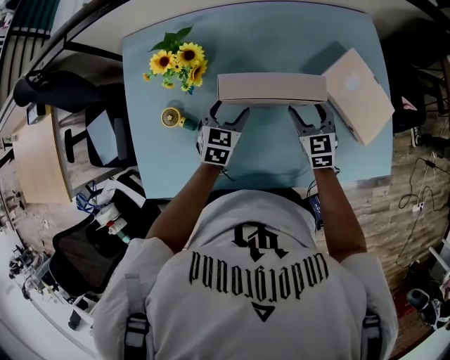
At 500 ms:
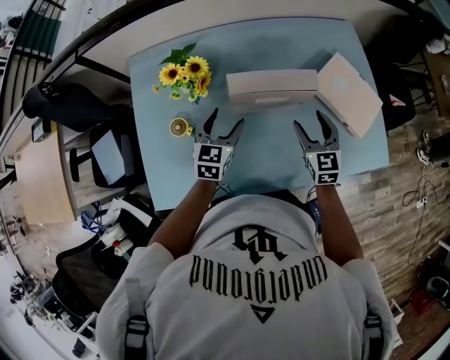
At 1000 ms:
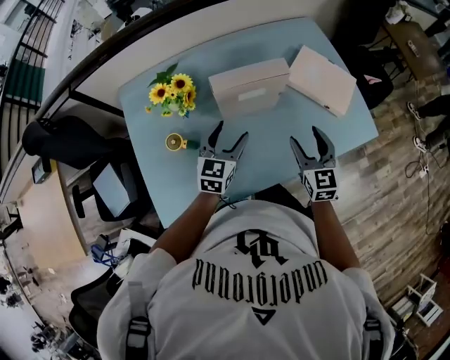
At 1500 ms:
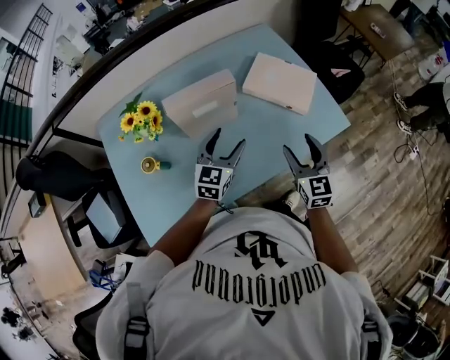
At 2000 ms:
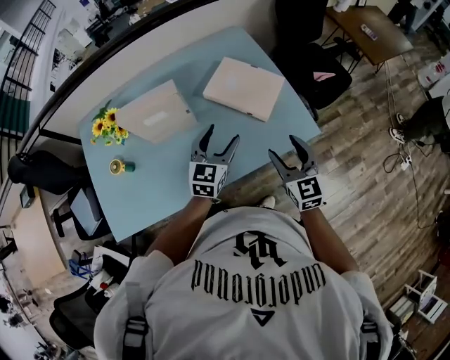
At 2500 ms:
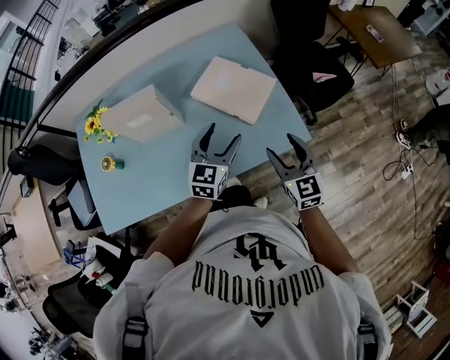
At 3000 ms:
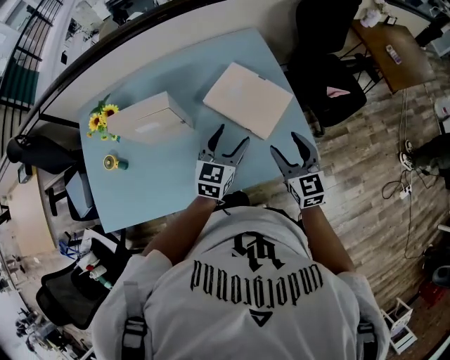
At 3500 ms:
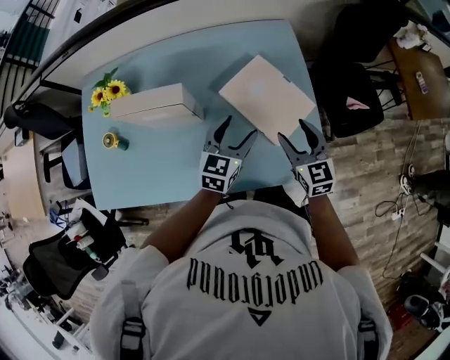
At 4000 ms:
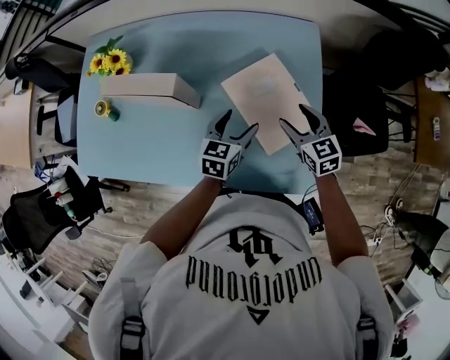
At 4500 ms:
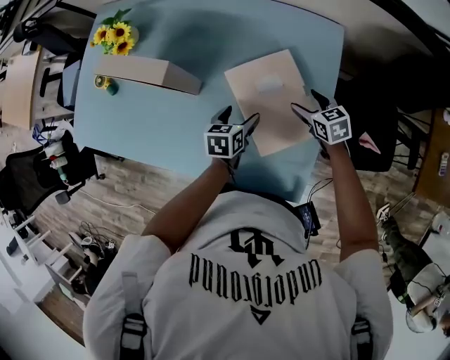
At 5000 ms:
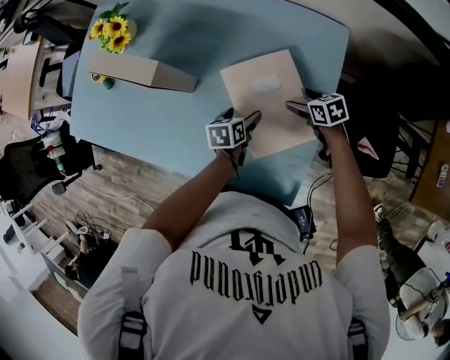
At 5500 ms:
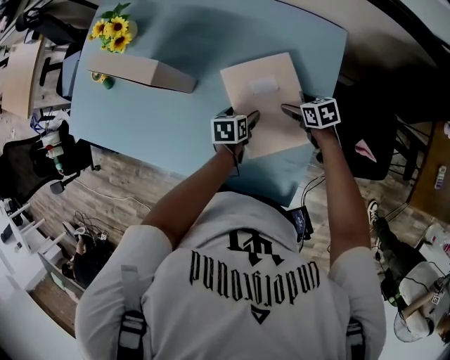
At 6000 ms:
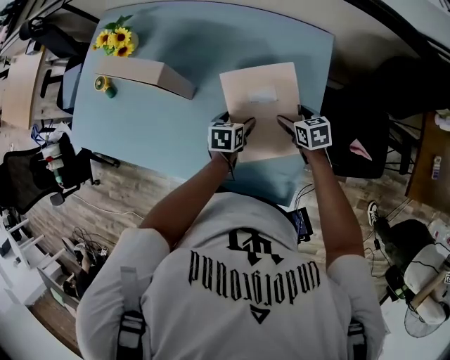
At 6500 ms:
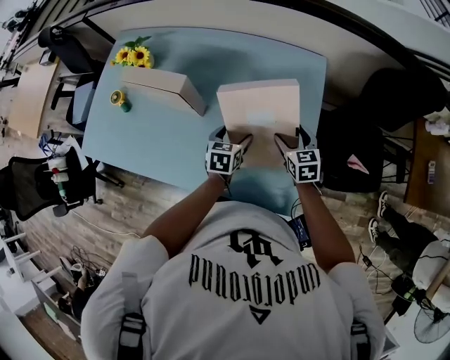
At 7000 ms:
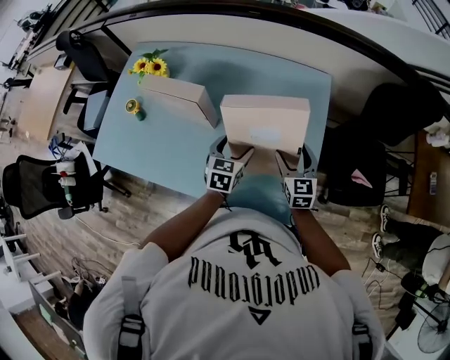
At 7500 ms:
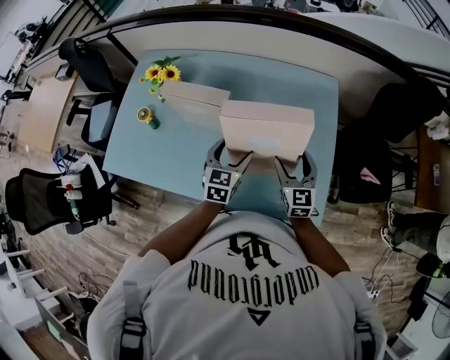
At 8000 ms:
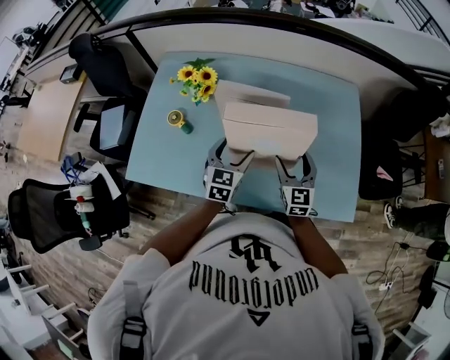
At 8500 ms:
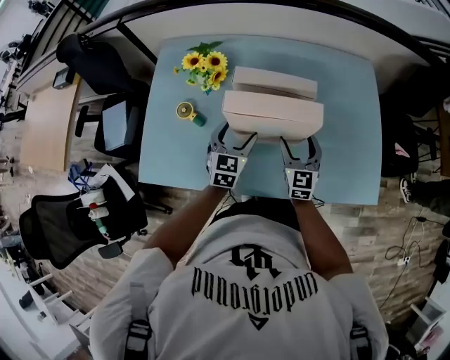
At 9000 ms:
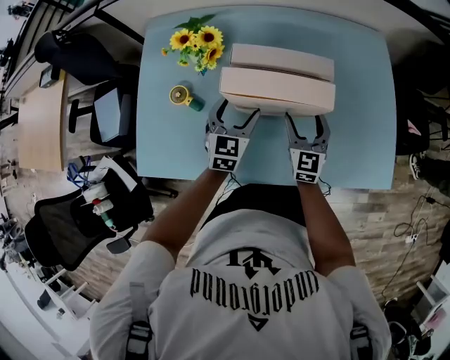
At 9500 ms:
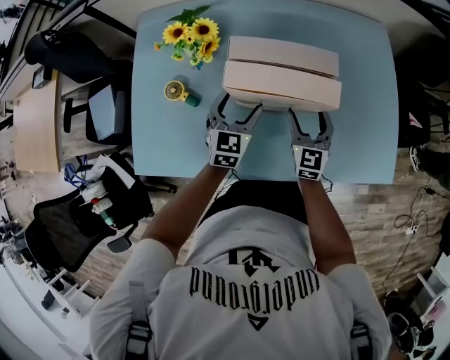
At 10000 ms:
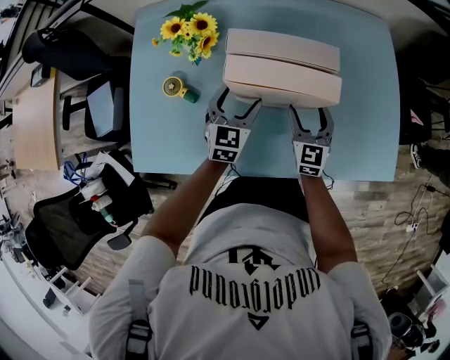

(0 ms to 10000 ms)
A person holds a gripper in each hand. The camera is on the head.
0 ms - 2000 ms: The right gripper is displaced to the right, backward and upward by about 40 cm, and swivels about 20 degrees; the left gripper is displaced to the right and upward by about 40 cm, and changes its angle by some 30 degrees.
2000 ms - 4000 ms: The left gripper shifts by about 20 cm, and turns by about 40 degrees. The right gripper moves about 35 cm, and swivels roughly 40 degrees.
4000 ms - 6000 ms: The right gripper heads downward and to the right, covering approximately 15 cm, and changes its angle by some 20 degrees, while the left gripper is displaced downward by roughly 10 cm, and swivels about 30 degrees.
6000 ms - 8000 ms: Both grippers move to the left and upward, approximately 40 cm. The left gripper turns by roughly 40 degrees. Meanwhile the right gripper angles its fingers upward, by some 40 degrees.
8000 ms - 10000 ms: Both grippers move downward, to the left and forward, some 15 cm.

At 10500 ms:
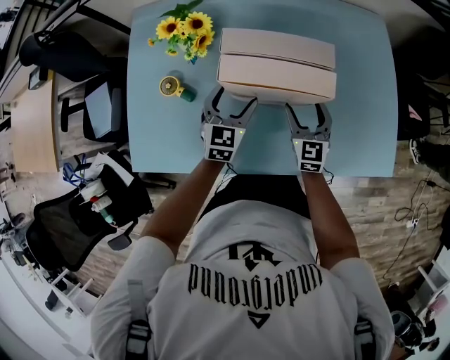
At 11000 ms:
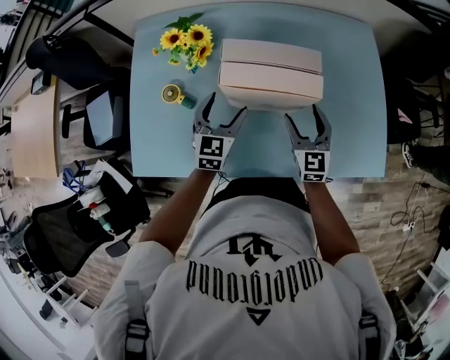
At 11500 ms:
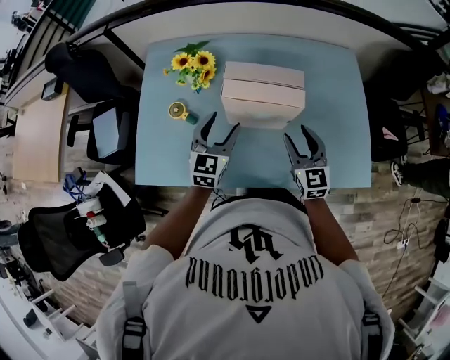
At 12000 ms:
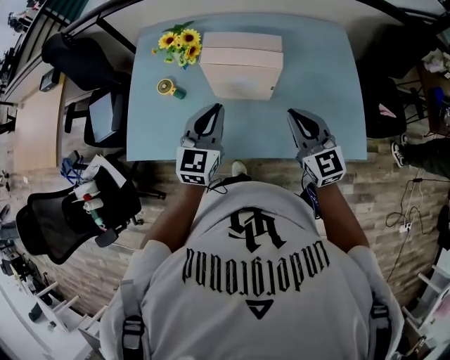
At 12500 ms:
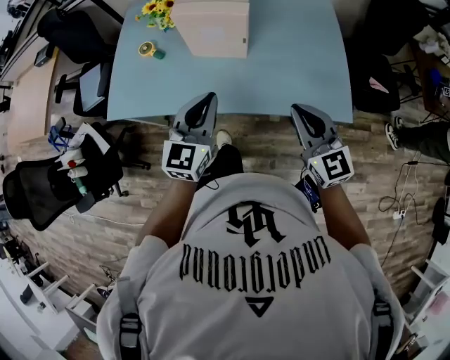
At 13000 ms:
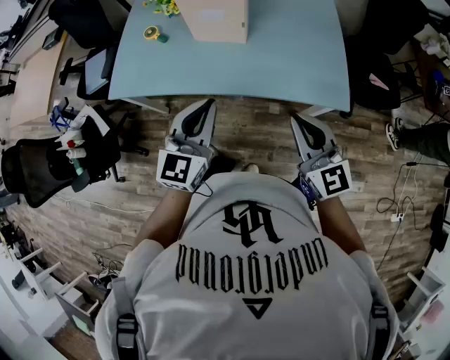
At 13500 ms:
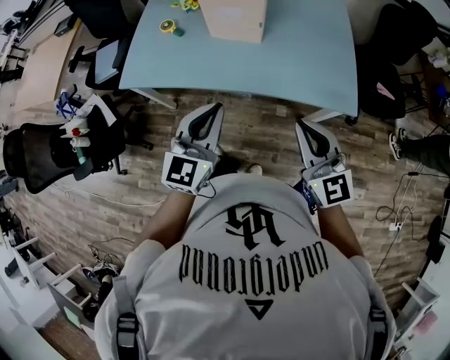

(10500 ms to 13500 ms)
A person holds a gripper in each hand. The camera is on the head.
10500 ms - 12000 ms: Both grippers move upward and backward, some 25 cm. The left gripper closes its fingers, while the right gripper turns by some 20 degrees, and closes its fingers.
12000 ms - 13500 ms: Both grippers move backward, some 30 cm.

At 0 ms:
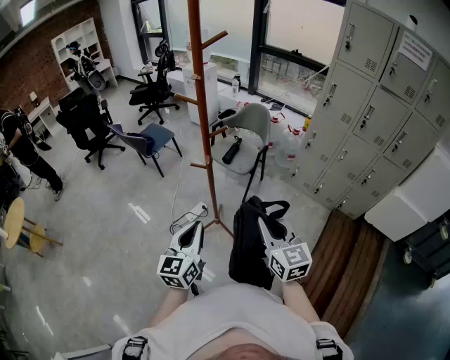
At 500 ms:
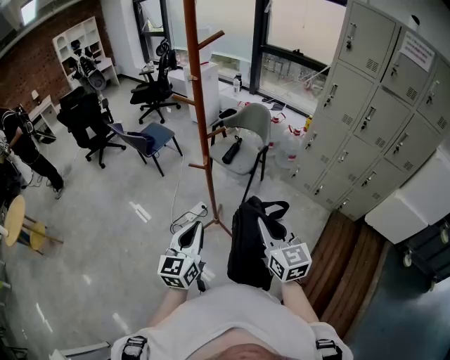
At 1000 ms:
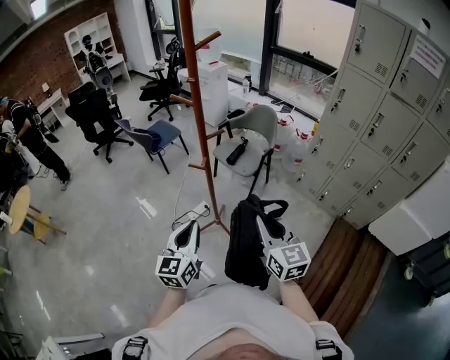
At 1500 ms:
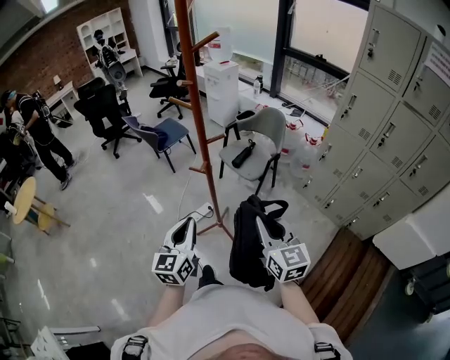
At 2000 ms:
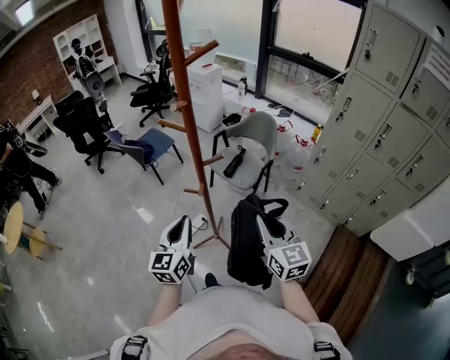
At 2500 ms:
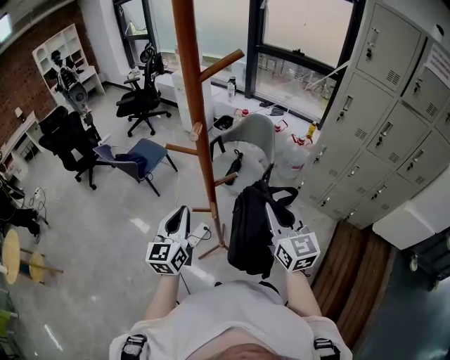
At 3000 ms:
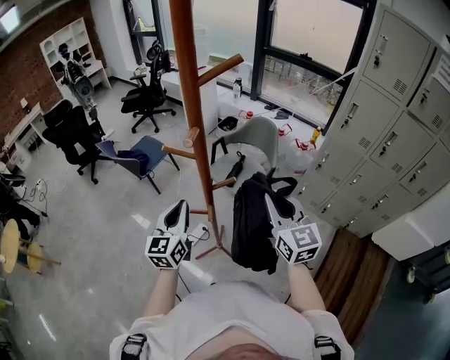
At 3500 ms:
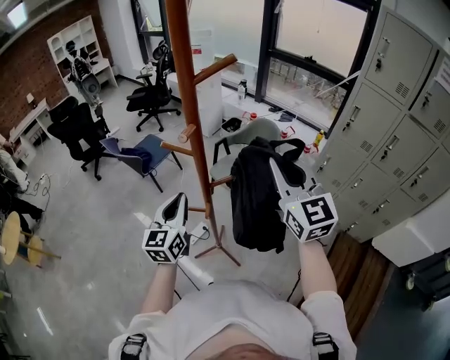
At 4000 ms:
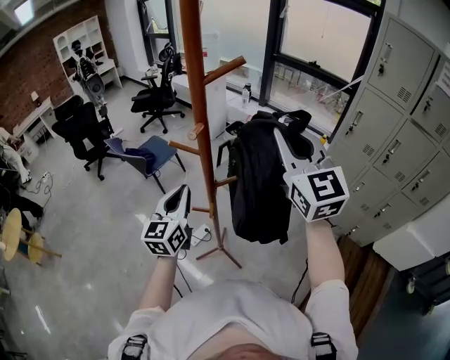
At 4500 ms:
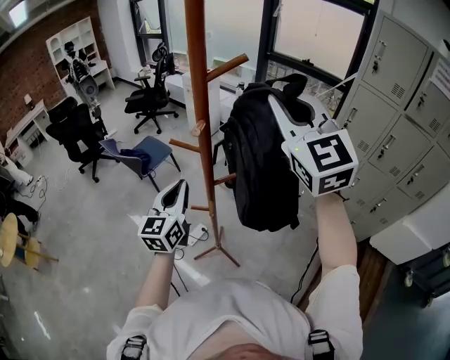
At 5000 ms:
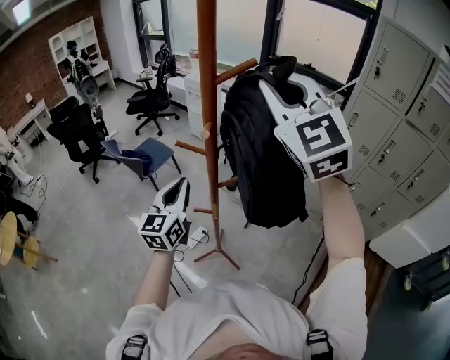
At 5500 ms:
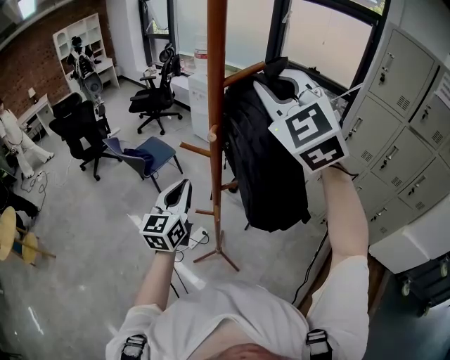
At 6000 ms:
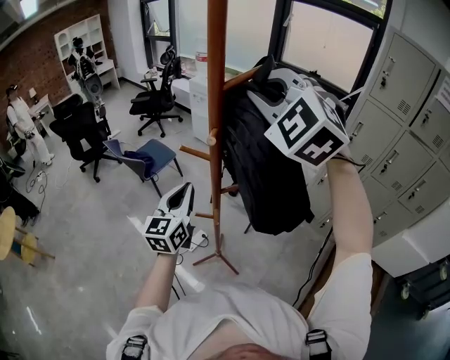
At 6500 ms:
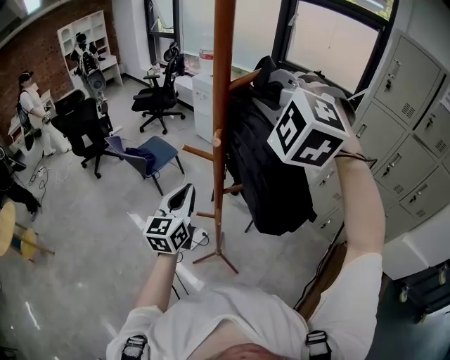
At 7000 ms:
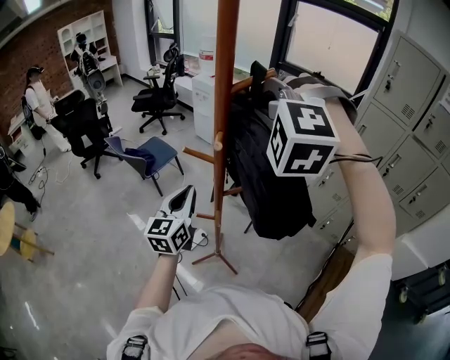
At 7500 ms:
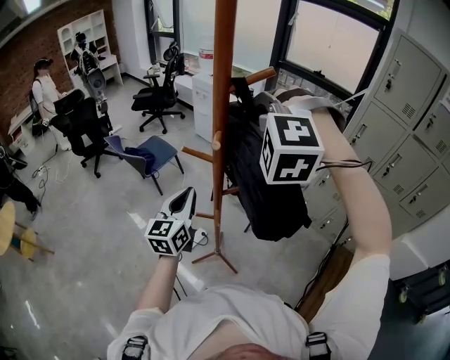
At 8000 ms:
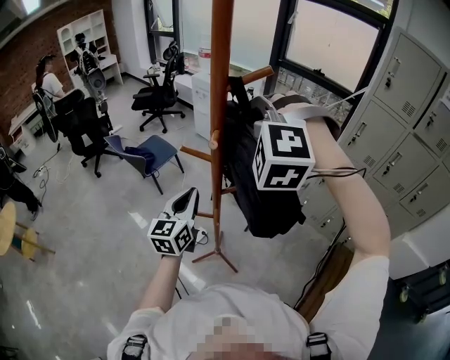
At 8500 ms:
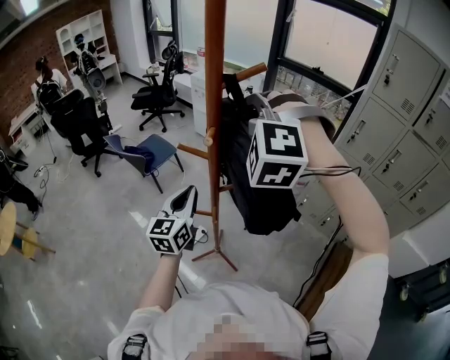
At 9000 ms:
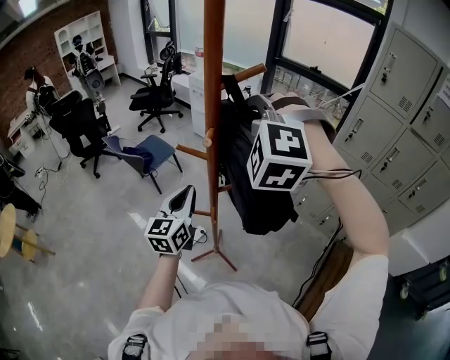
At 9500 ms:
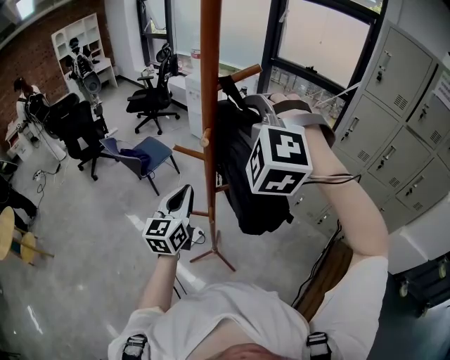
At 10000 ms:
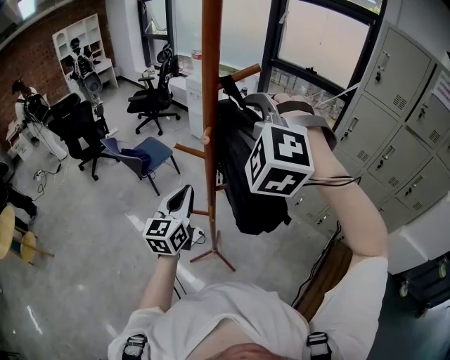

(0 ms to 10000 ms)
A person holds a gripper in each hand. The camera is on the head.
0 ms - 2000 ms: The two grippers go approximately 15 cm forward.
2000 ms - 4000 ms: The left gripper shifts about 15 cm forward and upward; the right gripper goes about 30 cm upward and forward, and turns by about 30 degrees.
4000 ms - 6000 ms: The right gripper travels to the left and upward by roughly 15 cm, and twists roughly 40 degrees counterclockwise, seen from behind.
6000 ms - 8000 ms: The right gripper moves downward, roughly 10 cm, and swivels about 30 degrees.
8000 ms - 10000 ms: The right gripper opens its fingers.

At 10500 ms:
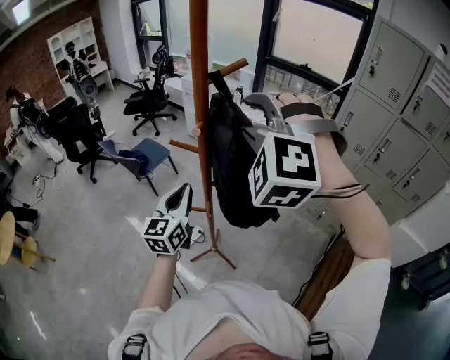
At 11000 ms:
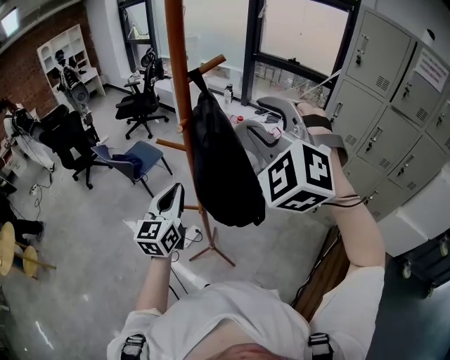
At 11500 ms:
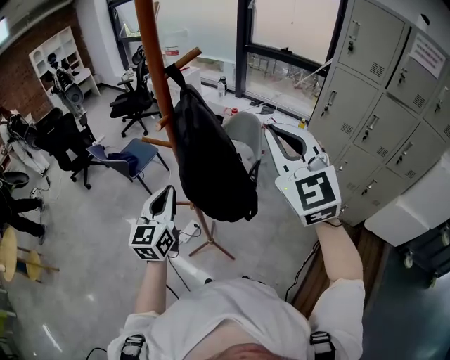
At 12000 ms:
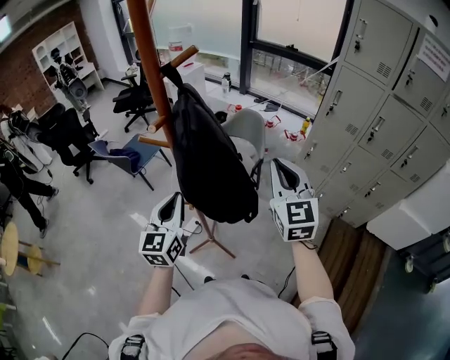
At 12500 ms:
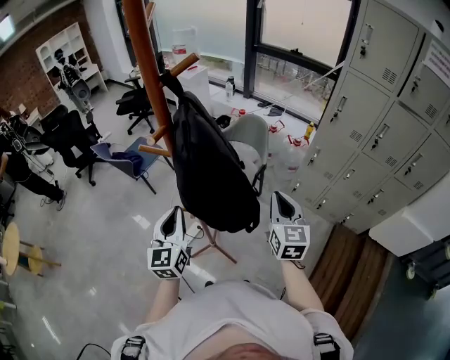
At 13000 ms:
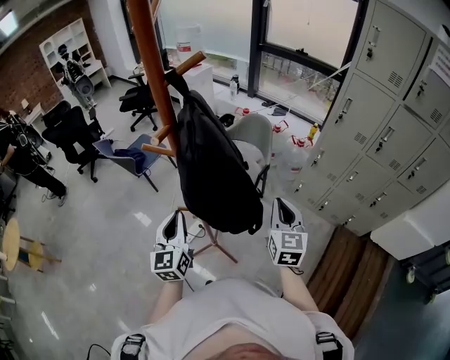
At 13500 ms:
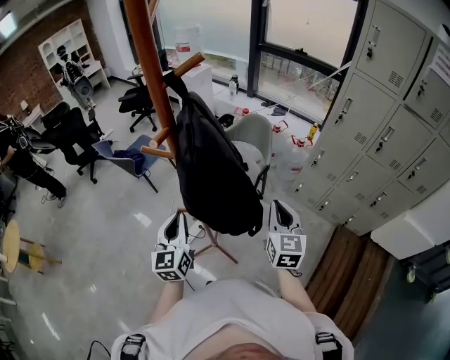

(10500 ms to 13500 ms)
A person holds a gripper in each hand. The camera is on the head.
10500 ms - 12000 ms: The left gripper shifts by roughly 5 cm, while the right gripper shifts some 25 cm to the right and downward, twists roughly 70 degrees clockwise, seen from behind, and closes its fingers.
12000 ms - 13500 ms: The right gripper goes about 15 cm downward, while the left gripper heads downward, covering some 5 cm.
